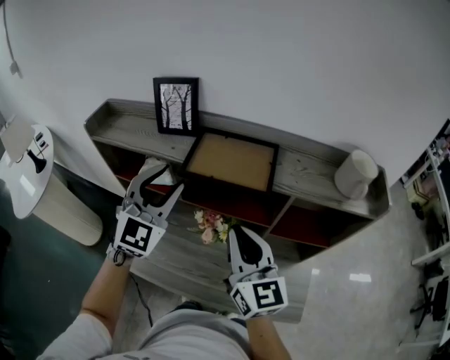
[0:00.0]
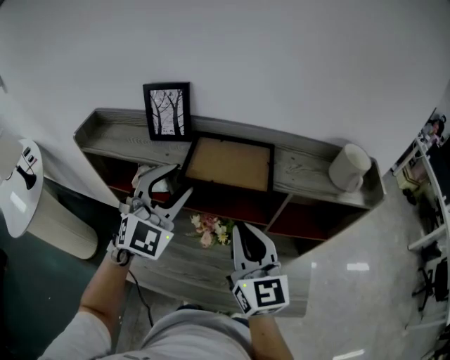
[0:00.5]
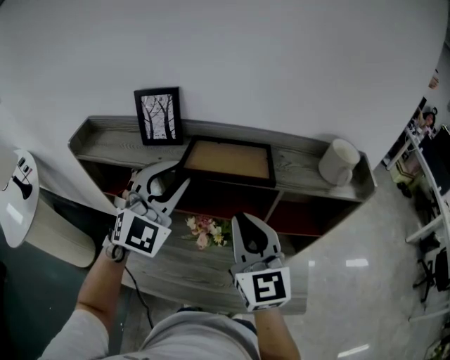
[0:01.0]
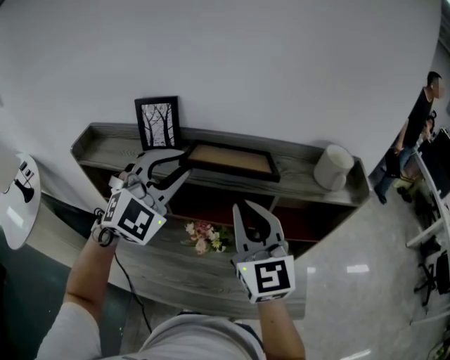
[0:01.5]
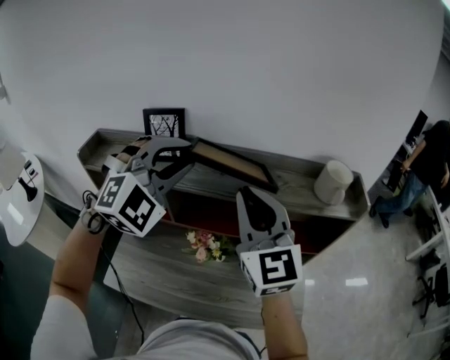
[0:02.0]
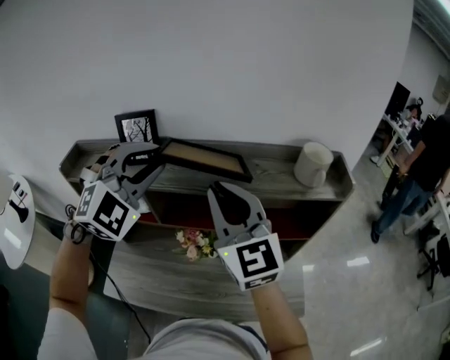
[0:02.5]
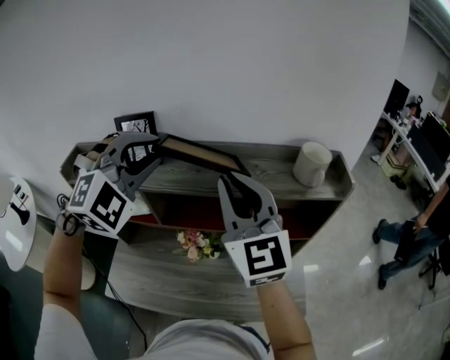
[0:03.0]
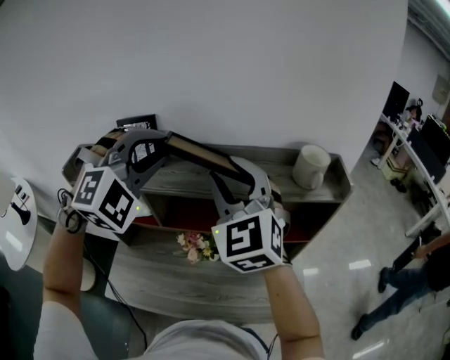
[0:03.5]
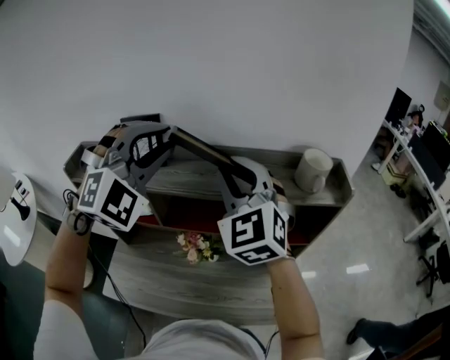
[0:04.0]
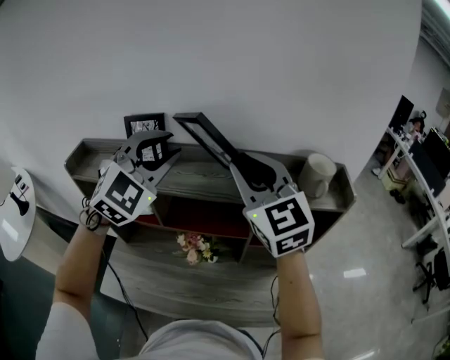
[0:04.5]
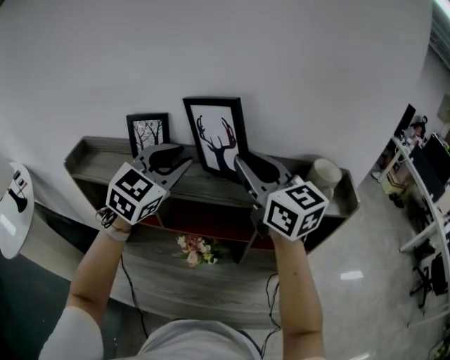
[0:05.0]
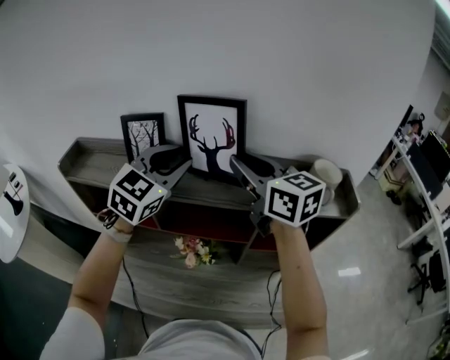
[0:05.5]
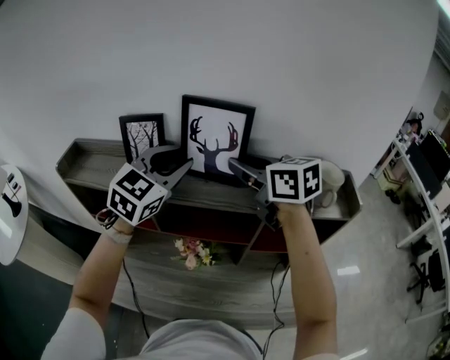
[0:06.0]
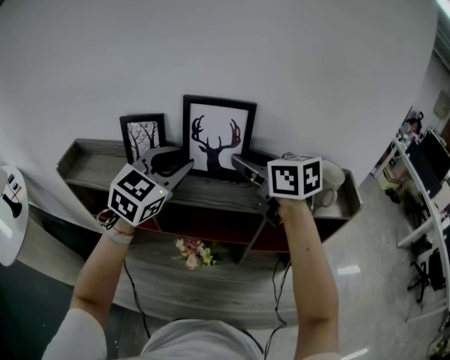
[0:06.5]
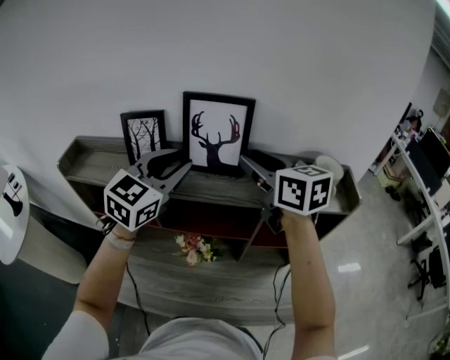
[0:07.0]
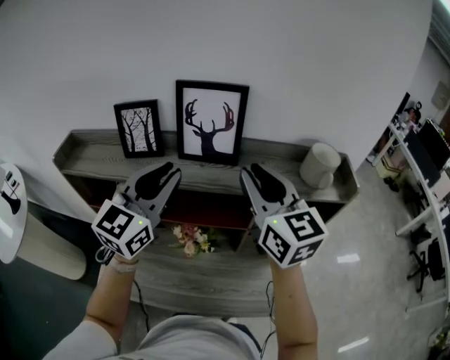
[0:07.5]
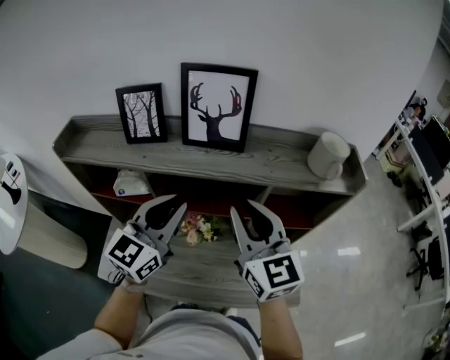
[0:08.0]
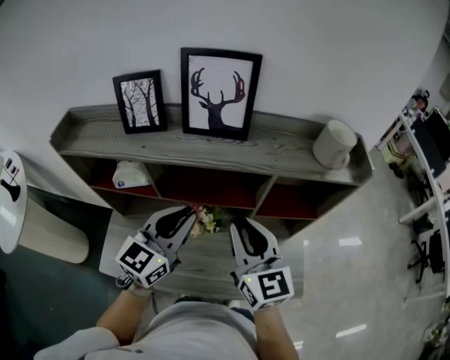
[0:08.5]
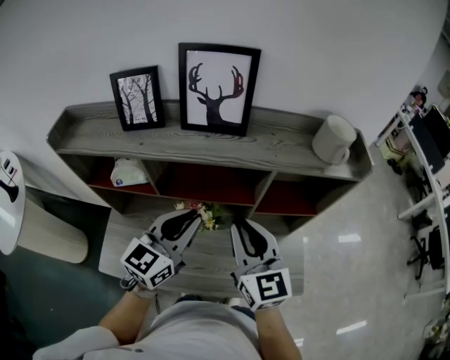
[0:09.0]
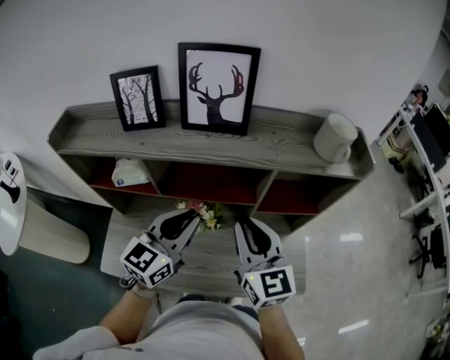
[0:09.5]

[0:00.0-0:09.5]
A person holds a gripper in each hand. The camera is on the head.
0:00.0 to 0:02.0: The right gripper goes about 15 cm upward, and changes its angle by approximately 20 degrees. Meanwhile the left gripper is displaced upward and to the right by about 15 cm, and rotates roughly 40 degrees.
0:02.0 to 0:04.0: The right gripper rotates about 30 degrees.
0:04.0 to 0:05.5: The left gripper heads downward and forward, covering roughly 10 cm, and rolls counterclockwise, seen from behind, by approximately 50 degrees. The right gripper goes approximately 5 cm forward, and rotates around the line of its fingers by about 50 degrees, clockwise from behind.
0:05.5 to 0:07.5: Both grippers move backward, roughly 5 cm.
0:07.5 to 0:09.5: The two grippers go approximately 20 cm downward and backward.

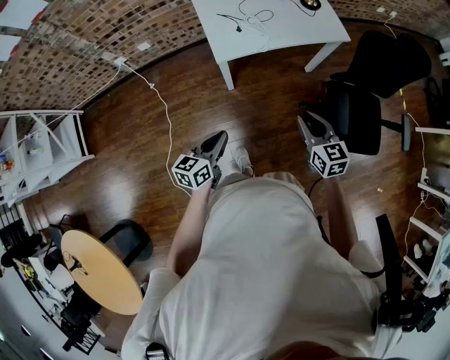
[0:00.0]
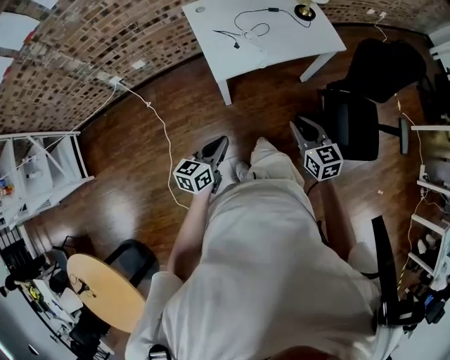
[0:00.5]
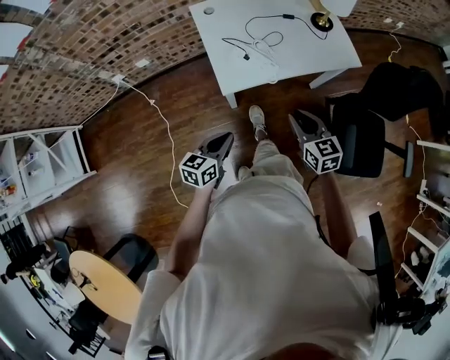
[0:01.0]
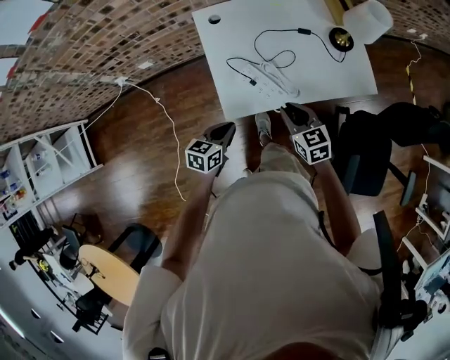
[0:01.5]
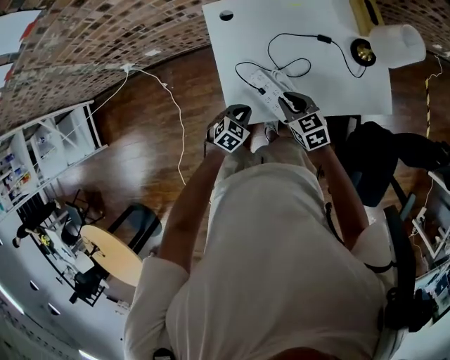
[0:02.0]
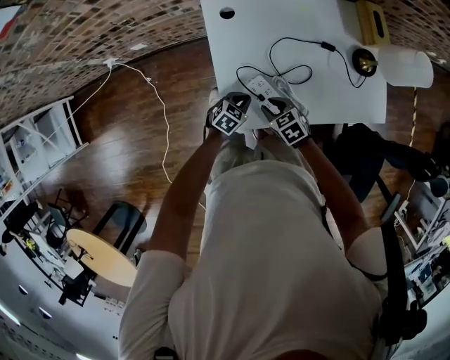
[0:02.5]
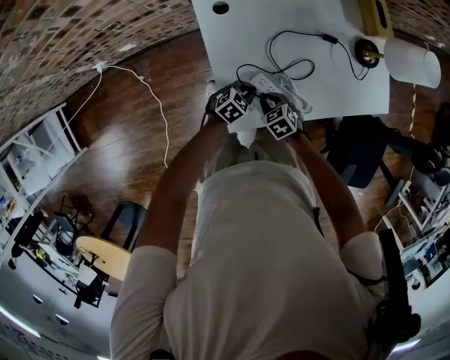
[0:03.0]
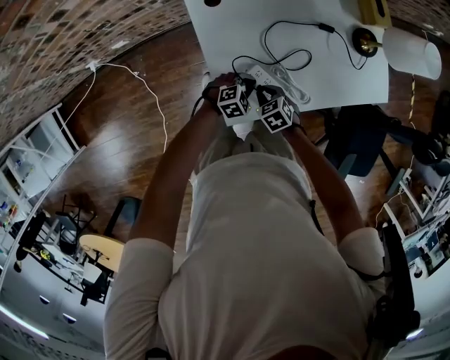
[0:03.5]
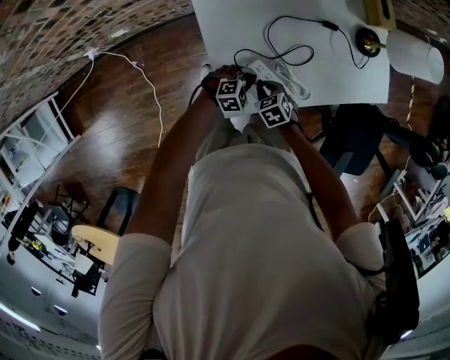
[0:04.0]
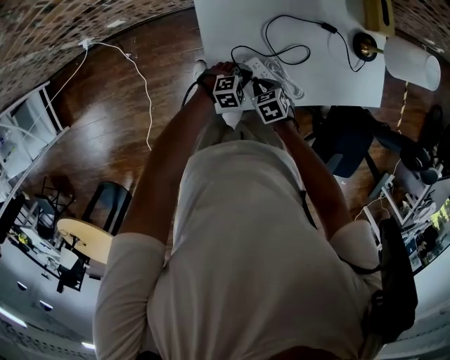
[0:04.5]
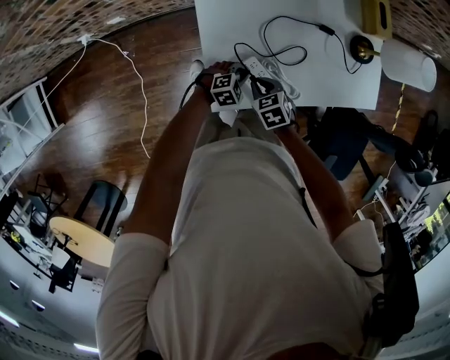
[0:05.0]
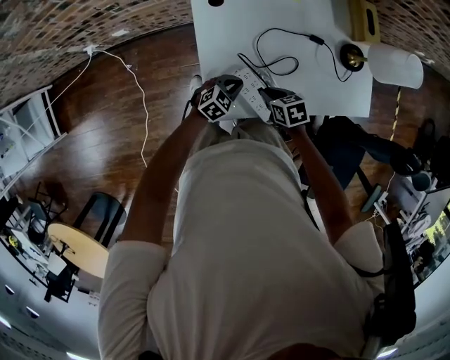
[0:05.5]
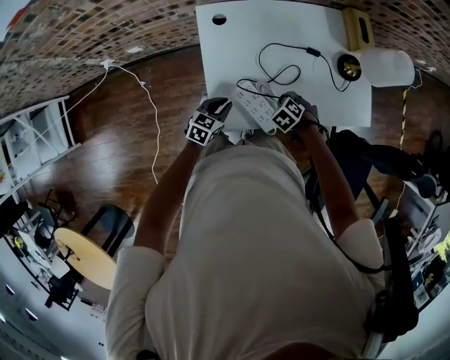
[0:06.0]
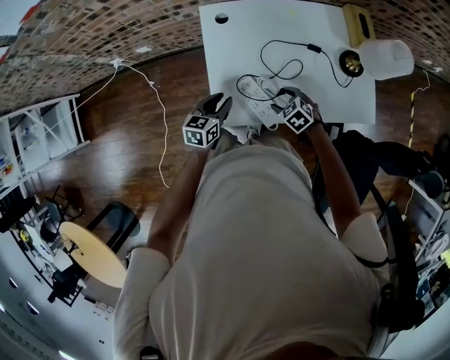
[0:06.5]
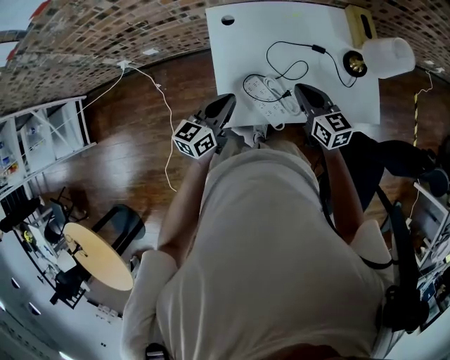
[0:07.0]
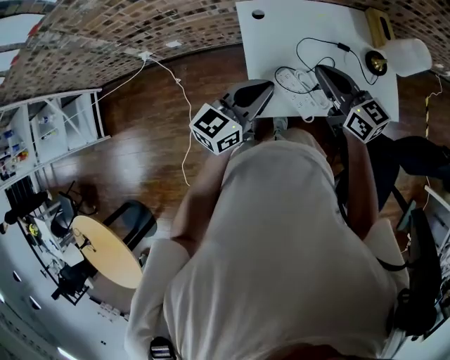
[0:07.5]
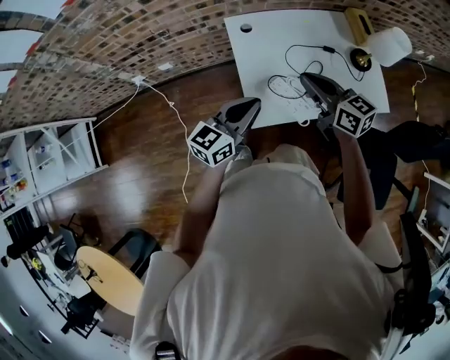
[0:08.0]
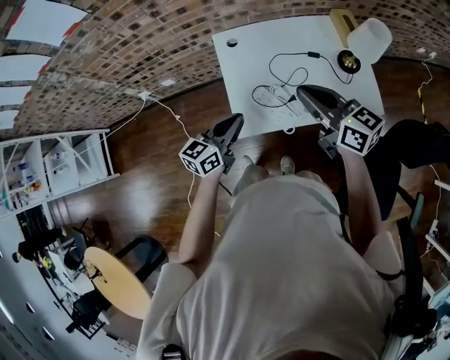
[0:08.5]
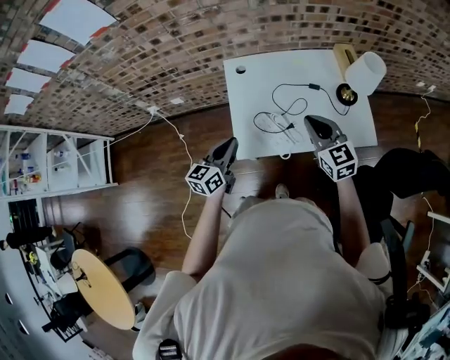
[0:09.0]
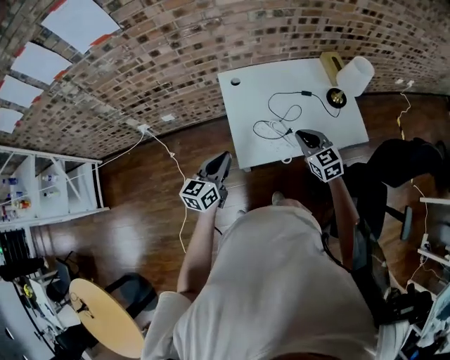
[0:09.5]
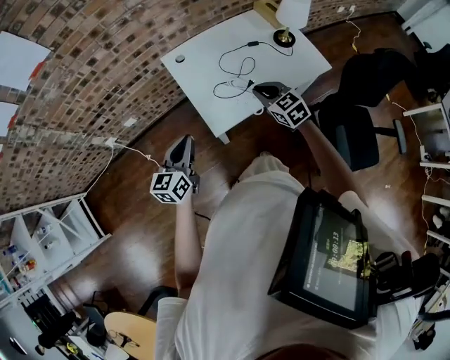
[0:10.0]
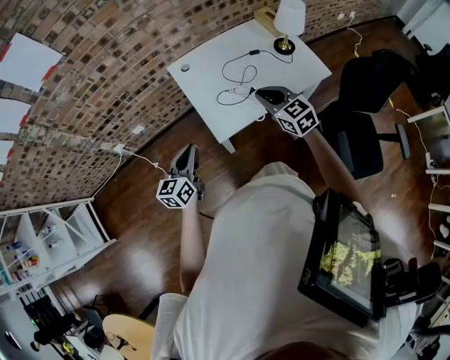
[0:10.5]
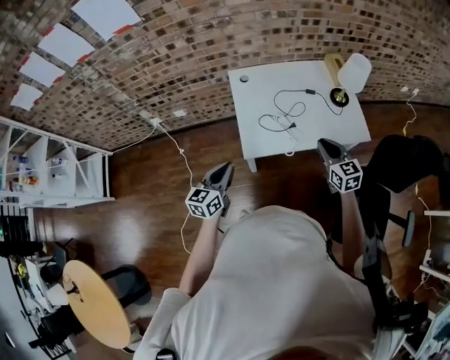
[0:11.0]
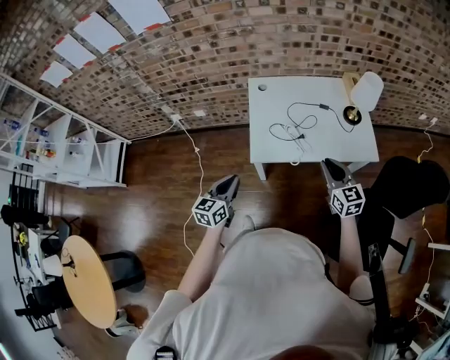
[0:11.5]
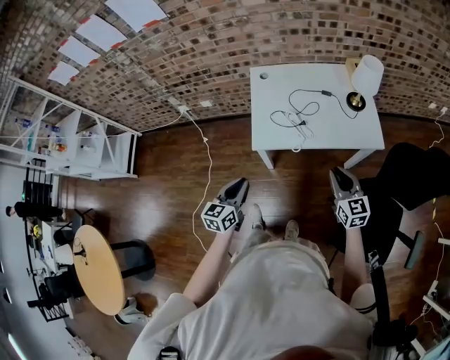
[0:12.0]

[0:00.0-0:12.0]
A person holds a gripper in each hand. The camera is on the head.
0:00.0 to 0:02.0: The two grippers travel together, forward, approximately 50 cm. The right gripper rotates approximately 30 degrees; the left gripper goes approximately 20 cm downward, and tilts its fingers roughly 40 degrees downward.
0:02.0 to 0:04.0: The left gripper is displaced downward by approximately 10 cm, and swivels about 40 degrees. The right gripper goes approximately 15 cm downward, and turns by roughly 30 degrees.
0:04.0 to 0:06.0: The right gripper moves approximately 15 cm, and changes its angle by roughly 30 degrees. The left gripper shifts roughly 10 cm upward, and rotates around the line of its fingers by roughly 50 degrees, counterclockwise from behind.
0:06.0 to 0:08.0: Both grippers travel together upward, some 30 cm. The left gripper angles its fingers upward, by approximately 30 degrees. The right gripper angles its fingers upward, by some 70 degrees, and opens, then closes once more.
0:08.0 to 0:10.0: The right gripper heads backward, downward and to the right, covering roughly 15 cm, and rotates some 30 degrees; the left gripper is displaced backward and to the left by about 15 cm.
0:10.0 to 0:12.0: The right gripper shifts about 25 cm to the right and backward, while the left gripper shifts some 25 cm backward and to the right, and rotates about 20 degrees.

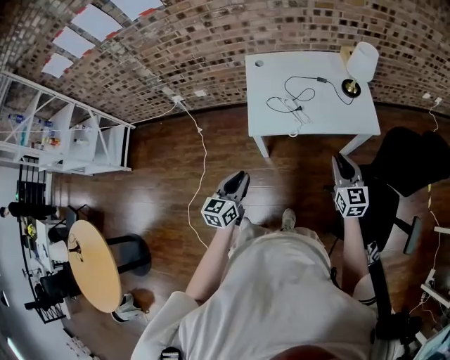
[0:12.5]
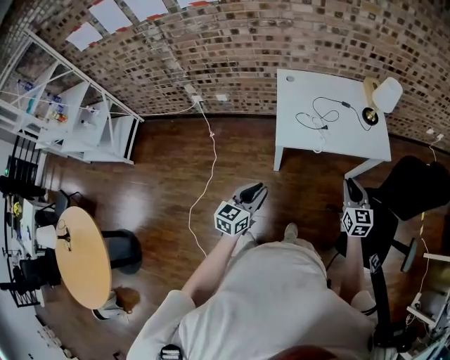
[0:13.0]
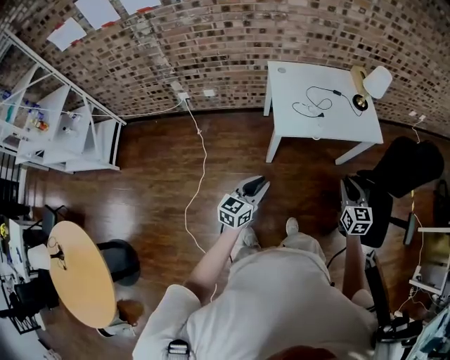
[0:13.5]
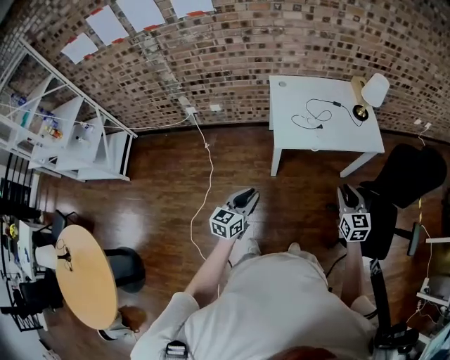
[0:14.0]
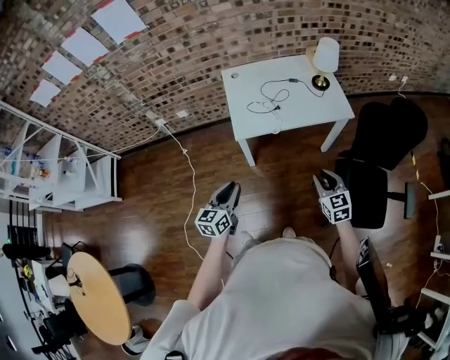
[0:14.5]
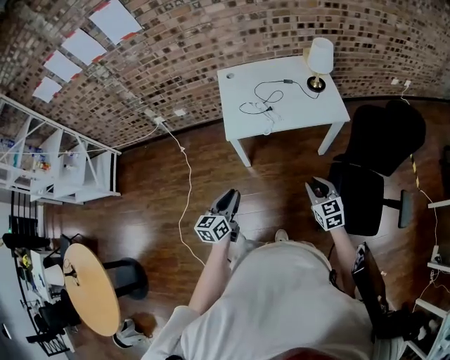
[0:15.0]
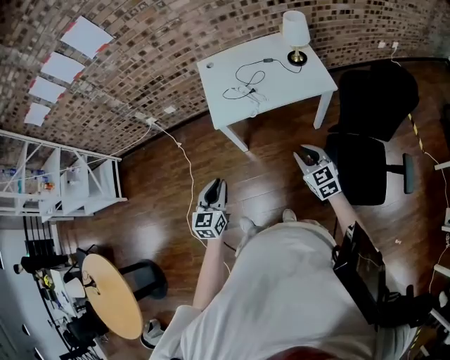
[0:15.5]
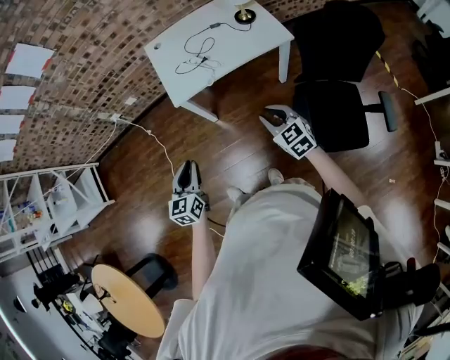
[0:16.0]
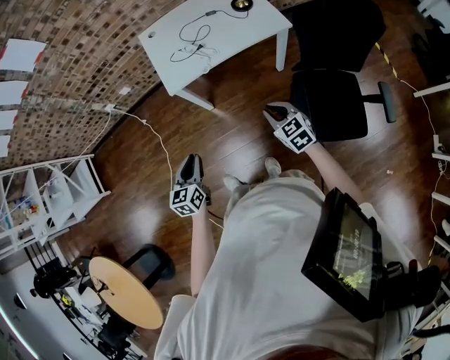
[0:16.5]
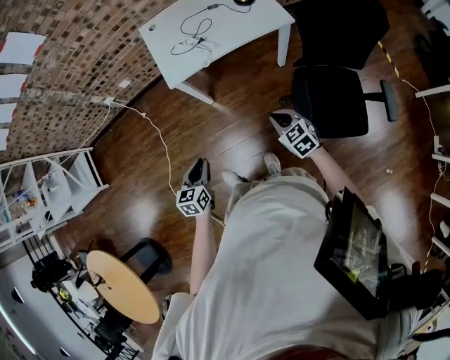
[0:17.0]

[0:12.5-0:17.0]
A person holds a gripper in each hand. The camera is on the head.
0:12.5 to 0:14.5: The left gripper travels backward by approximately 10 cm, and reaches about 15 cm to the left, then returns; the right gripper moves backward, about 15 cm.
0:14.5 to 0:17.0: The right gripper travels downward, backward and to the right by roughly 15 cm, and closes its fingers, while the left gripper moves backward, downward and to the right, about 20 cm.
